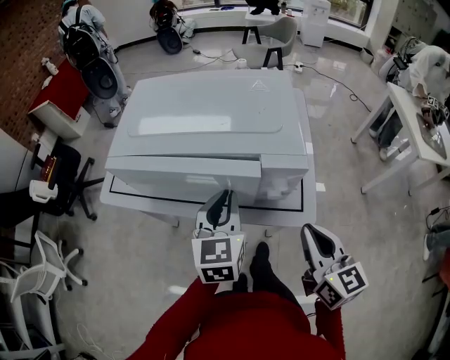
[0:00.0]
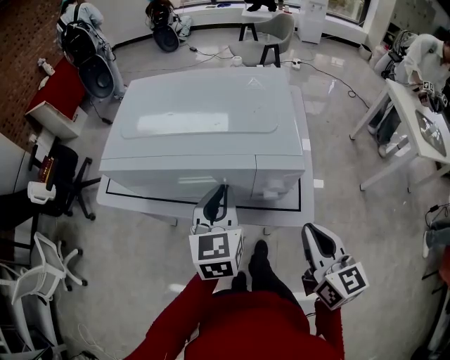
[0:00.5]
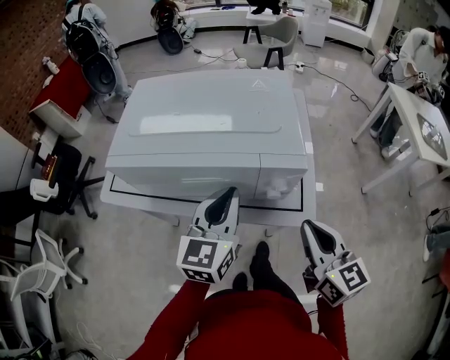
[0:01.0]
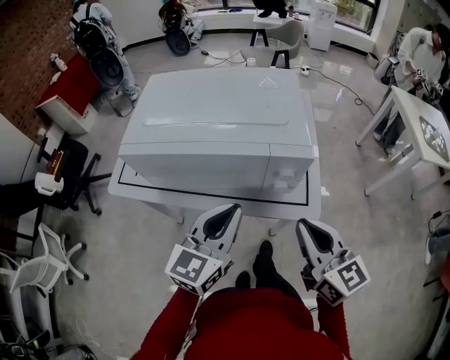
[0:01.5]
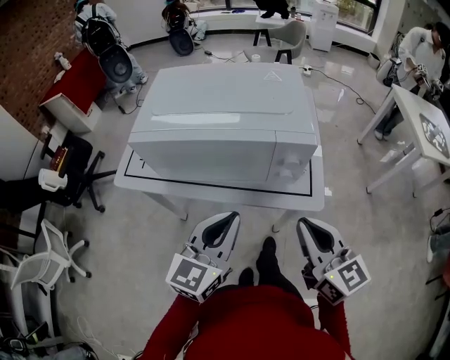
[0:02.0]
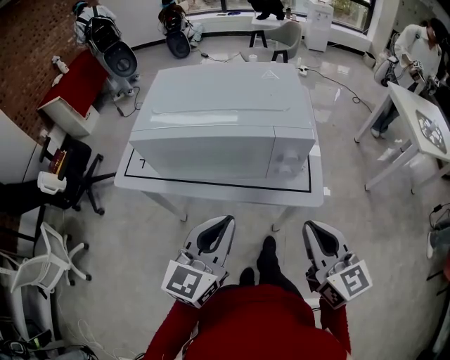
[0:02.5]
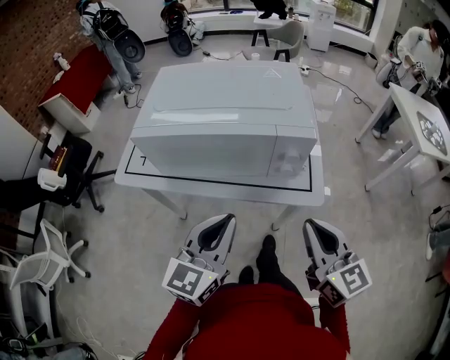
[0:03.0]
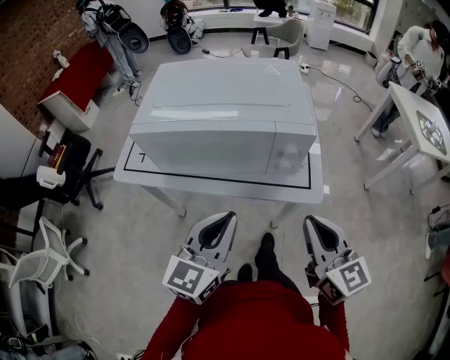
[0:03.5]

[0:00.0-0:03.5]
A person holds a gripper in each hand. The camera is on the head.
0:00.0 to 0:02.0: The right gripper moves some 5 cm, while the left gripper is displaced backward by some 10 cm, and turns by roughly 20 degrees.
0:02.0 to 0:03.5: The grippers stay close to where they were, moving slightly.

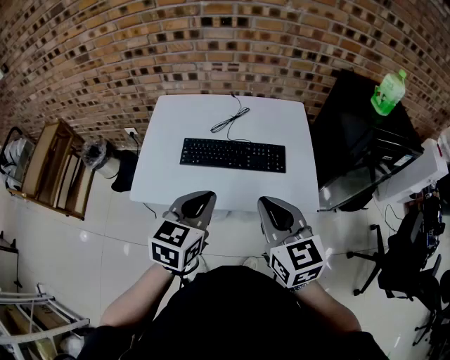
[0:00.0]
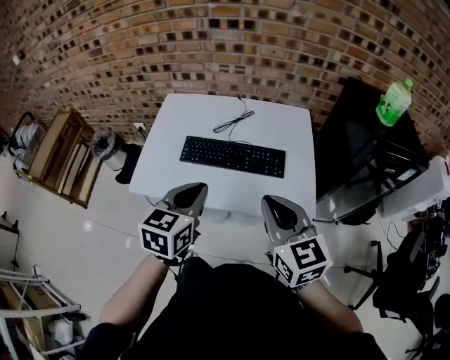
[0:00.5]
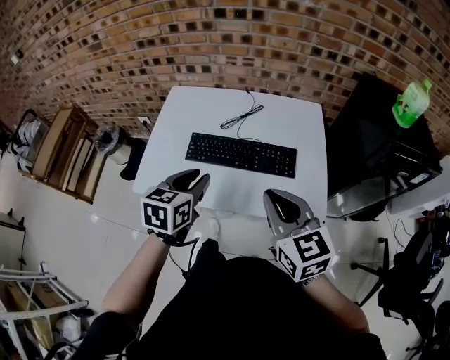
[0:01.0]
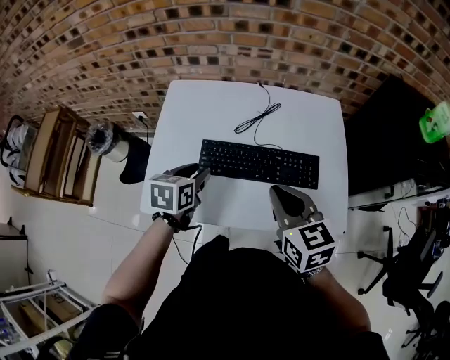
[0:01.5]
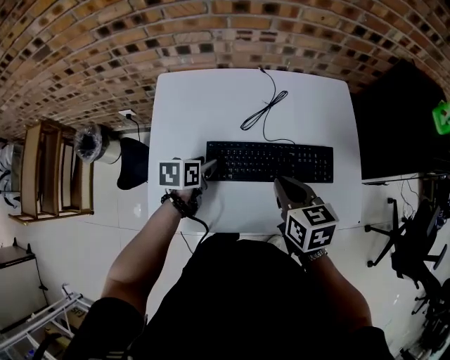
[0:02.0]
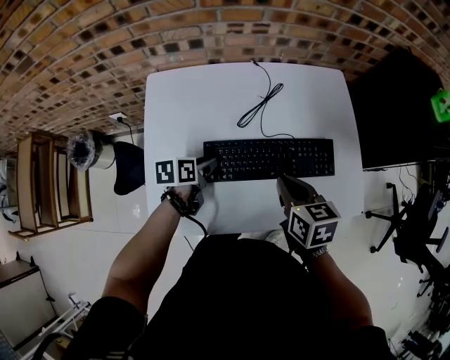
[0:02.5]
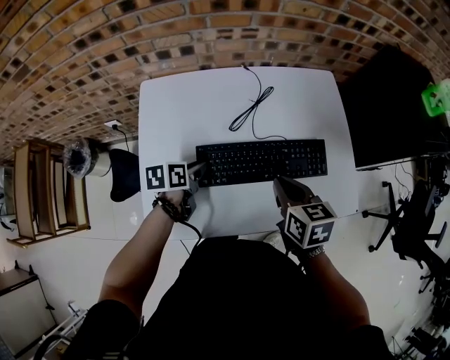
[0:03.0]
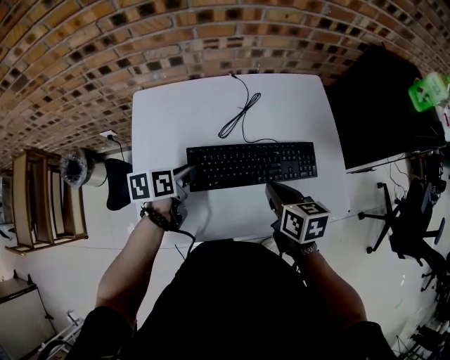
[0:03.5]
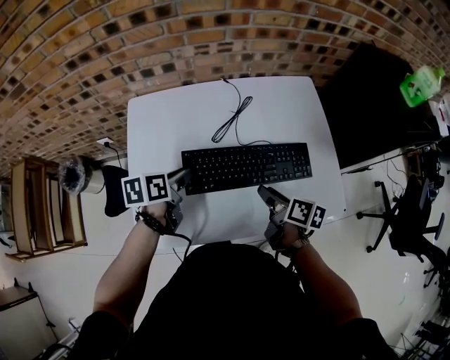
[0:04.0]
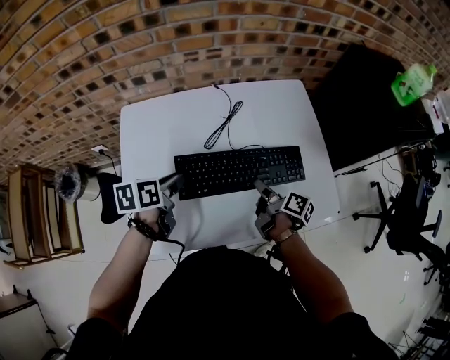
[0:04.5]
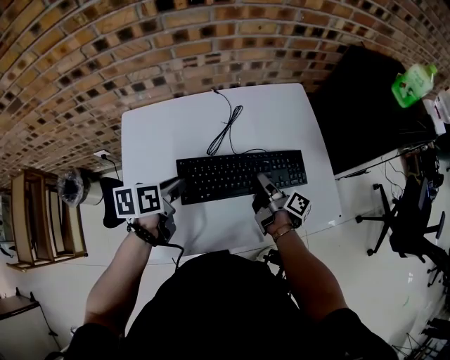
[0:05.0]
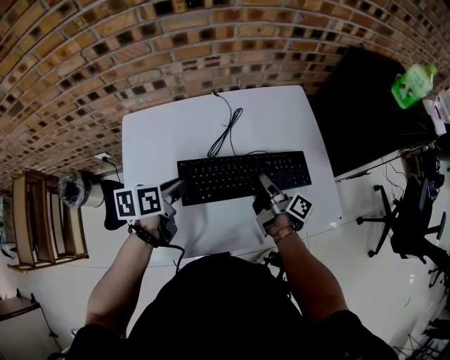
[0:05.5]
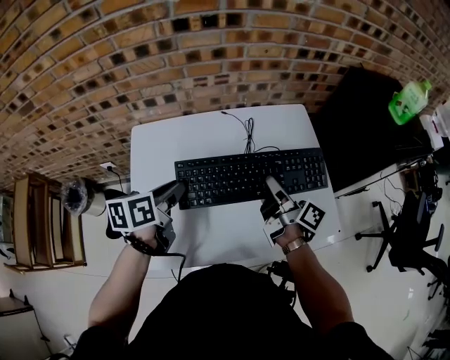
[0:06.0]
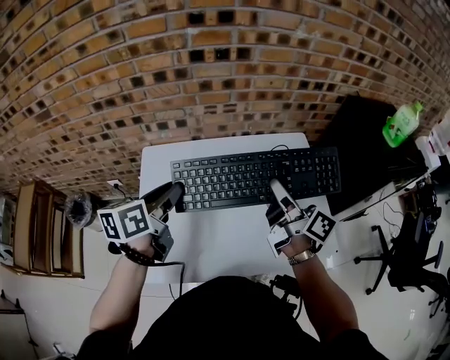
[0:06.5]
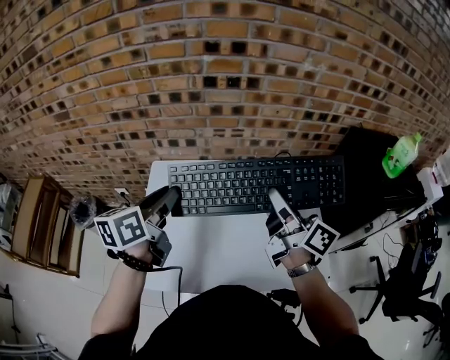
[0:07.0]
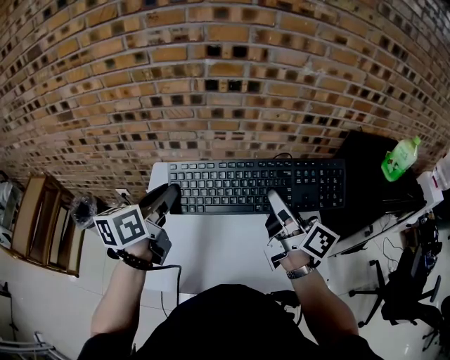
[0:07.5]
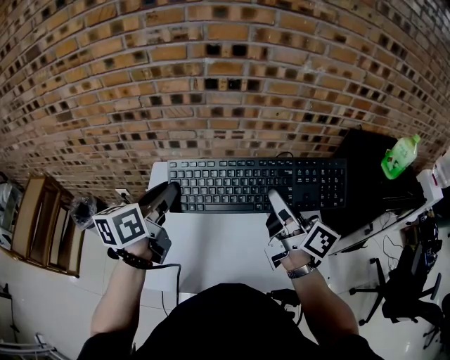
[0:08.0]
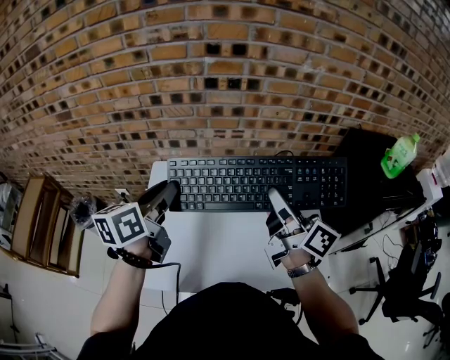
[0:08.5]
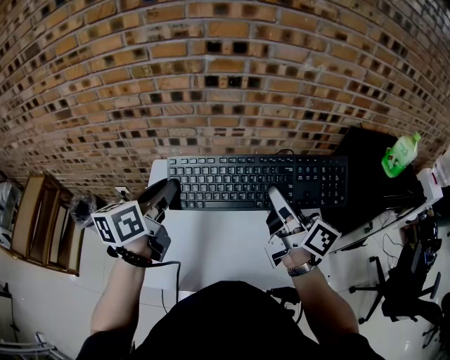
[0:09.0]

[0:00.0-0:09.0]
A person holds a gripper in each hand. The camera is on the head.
0:00.0 to 0:02.0: The right gripper is displaced forward and downward by some 25 cm, and turns by about 30 degrees, while the left gripper shifts some 35 cm forward, downward and to the left, changes its angle by about 40 degrees, and opens its fingers.
0:02.0 to 0:04.5: The left gripper moves upward, roughly 5 cm, and closes its fingers, while the right gripper moves downward and to the right, some 15 cm, rotates around the line of its fingers by approximately 60 degrees, clockwise from behind, and opens.
0:04.5 to 0:07.0: Both grippers travel together upward, approximately 30 cm. The right gripper points its fingers about 30 degrees further upward, and closes up. The left gripper rotates about 30 degrees.
0:07.0 to 0:09.0: The grippers make only small movements.

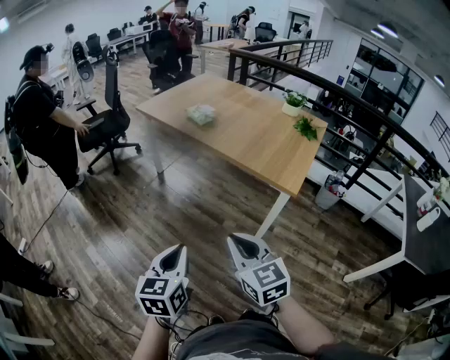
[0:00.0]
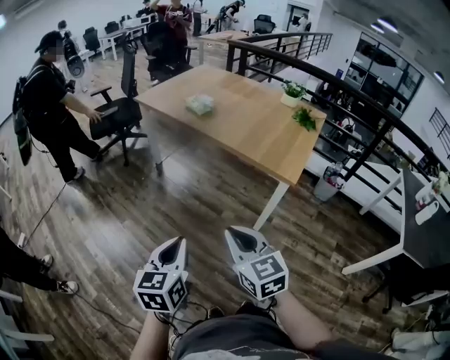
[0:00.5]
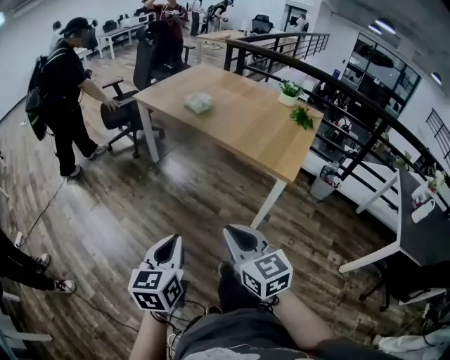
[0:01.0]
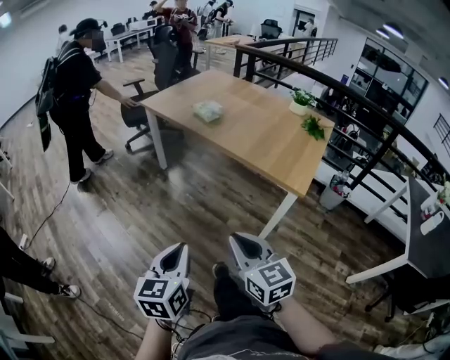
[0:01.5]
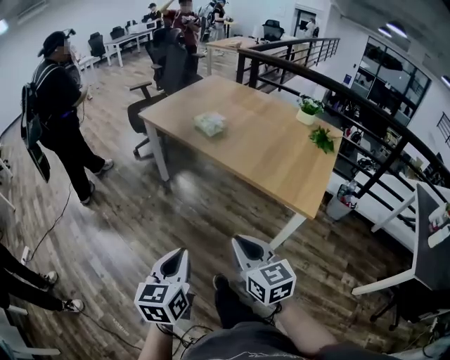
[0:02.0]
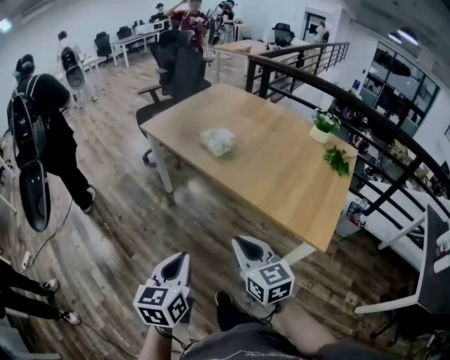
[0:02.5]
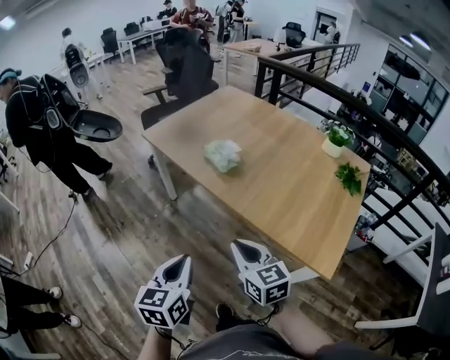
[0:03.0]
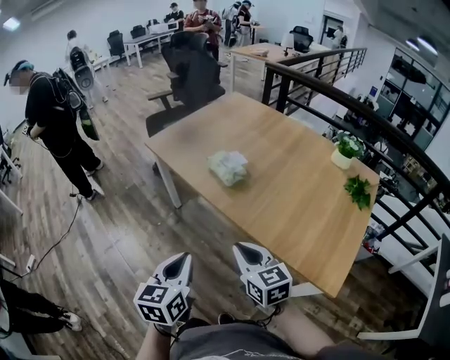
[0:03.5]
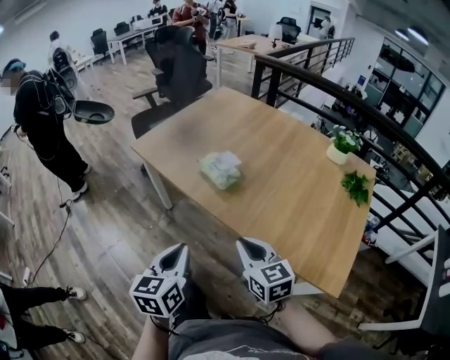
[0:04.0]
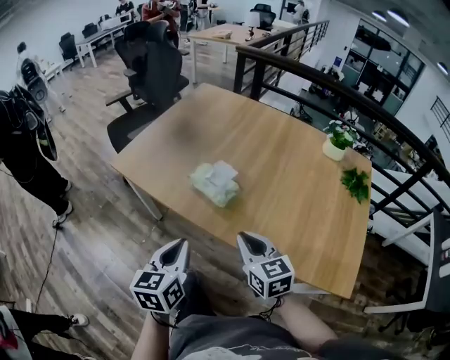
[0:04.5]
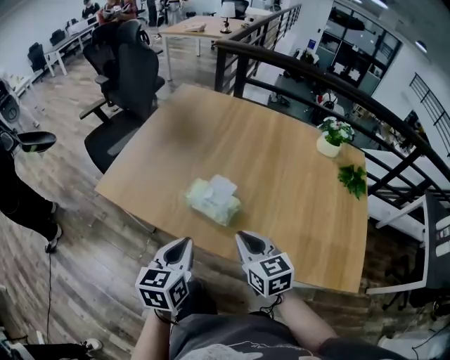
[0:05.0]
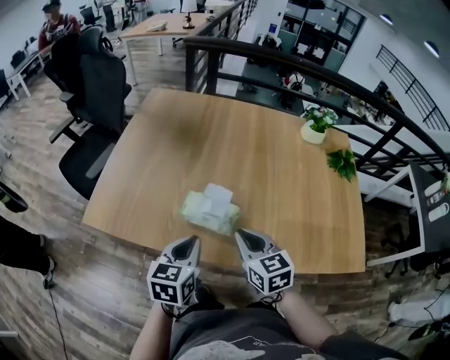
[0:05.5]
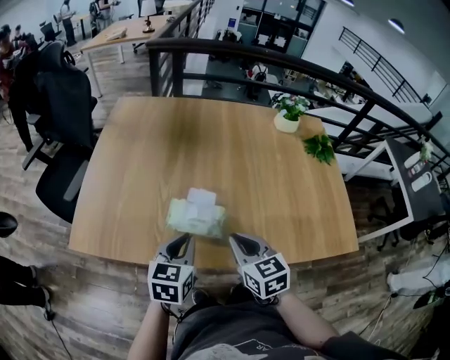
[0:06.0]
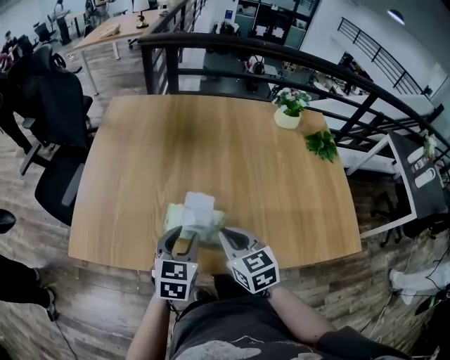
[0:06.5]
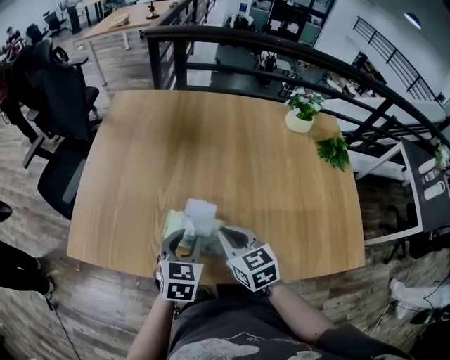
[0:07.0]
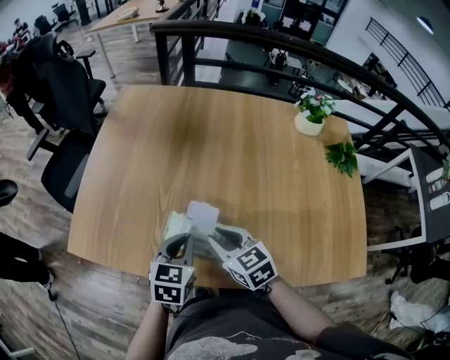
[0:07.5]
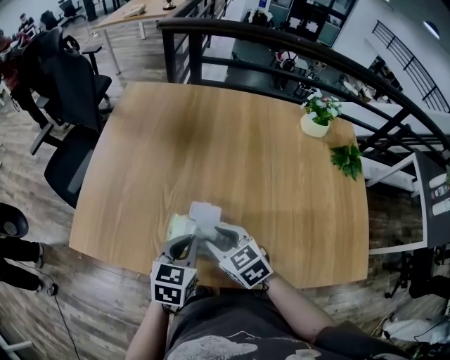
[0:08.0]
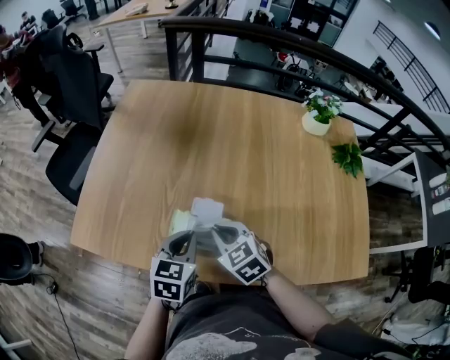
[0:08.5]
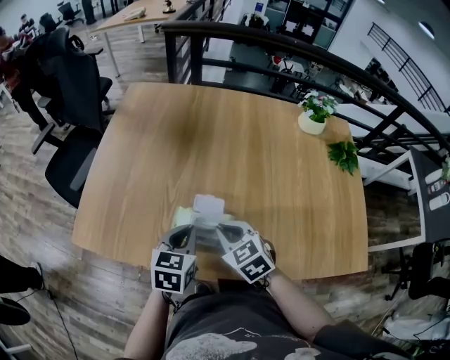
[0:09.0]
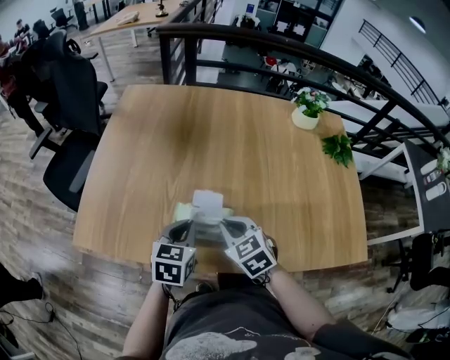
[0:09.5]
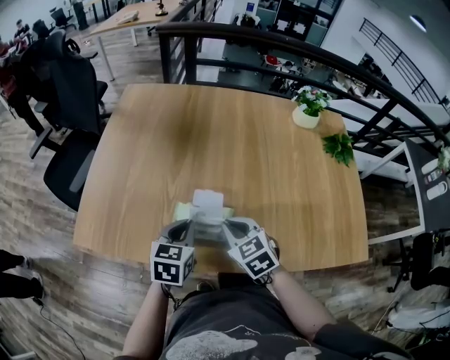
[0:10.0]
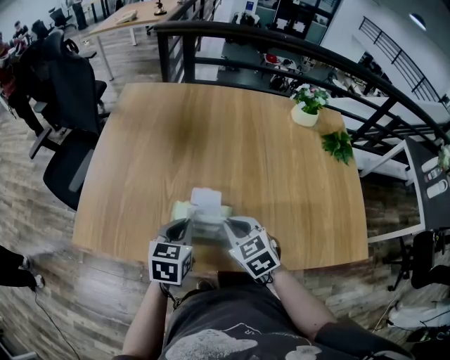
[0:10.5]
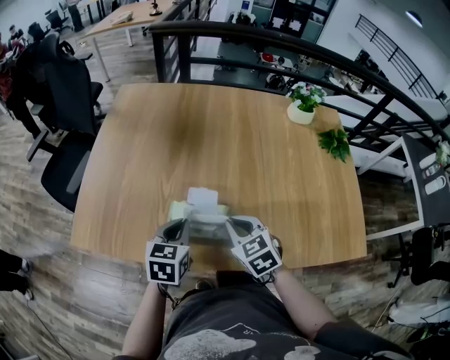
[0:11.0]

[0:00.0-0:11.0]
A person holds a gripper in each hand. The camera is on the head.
0:00.0 to 0:02.0: Both grippers move forward, roughly 15 cm.
0:02.0 to 0:03.5: The grippers both shift forward by roughly 30 cm.
0:03.5 to 0:05.5: The left gripper moves roughly 40 cm, and rotates roughly 40 degrees, while the right gripper changes place by roughly 35 cm, and turns by approximately 40 degrees.
0:05.5 to 0:07.5: The right gripper heads forward and downward, covering approximately 10 cm, while the left gripper travels forward by some 10 cm, and opens, then closes once more.
0:07.5 to 0:09.0: The right gripper opens and closes again.
0:09.0 to 0:11.0: The grippers move only a little.

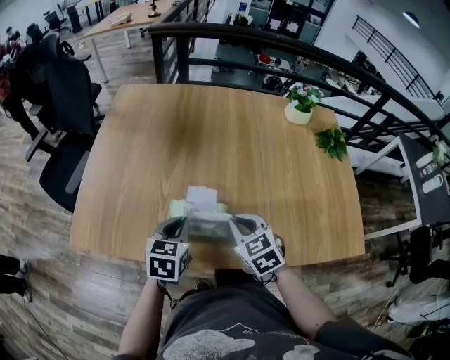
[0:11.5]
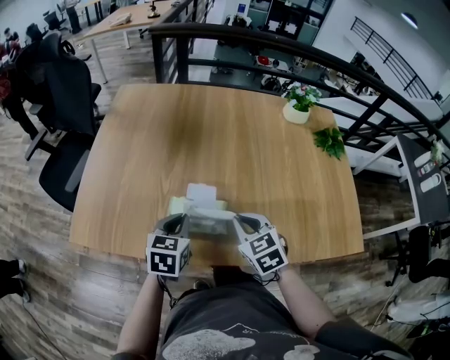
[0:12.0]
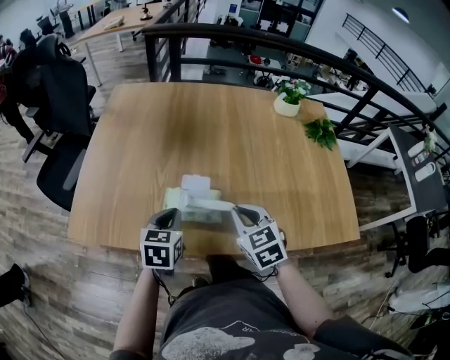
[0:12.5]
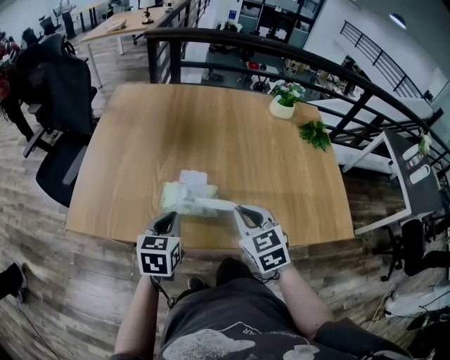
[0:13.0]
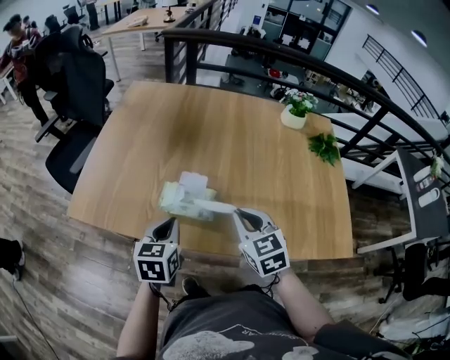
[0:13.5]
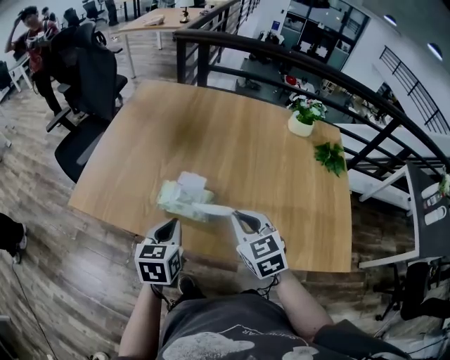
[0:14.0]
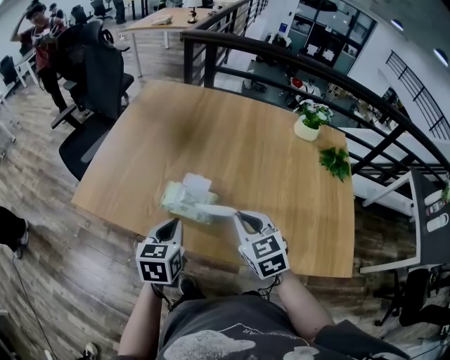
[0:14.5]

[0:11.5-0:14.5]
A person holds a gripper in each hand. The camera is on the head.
0:11.5 to 0:13.0: The right gripper goes some 10 cm upward and backward; the left gripper is displaced backward by some 5 cm.
0:13.0 to 0:14.5: There are only small adjustments of the grippers.
